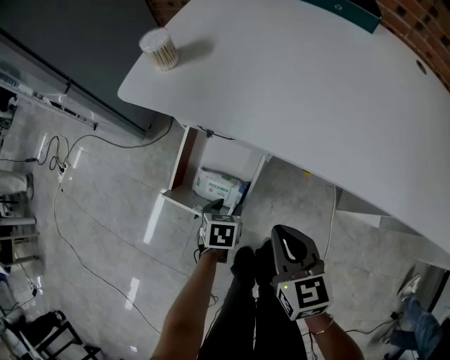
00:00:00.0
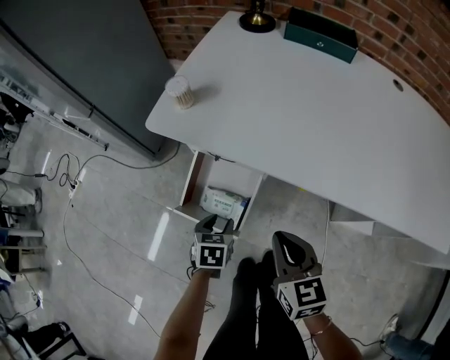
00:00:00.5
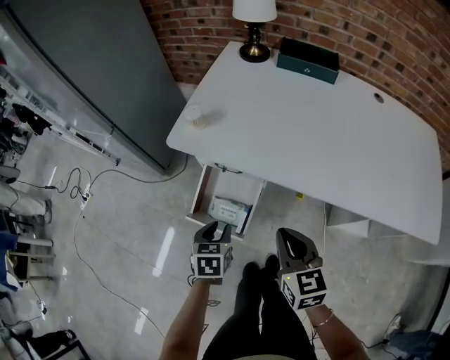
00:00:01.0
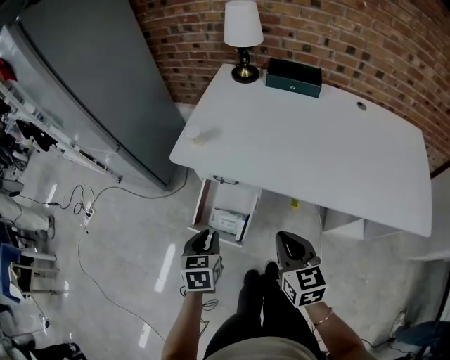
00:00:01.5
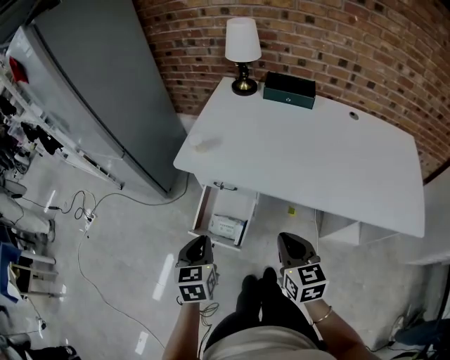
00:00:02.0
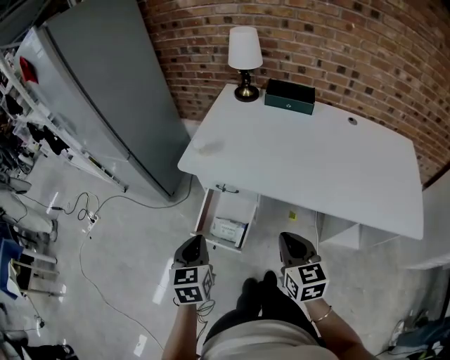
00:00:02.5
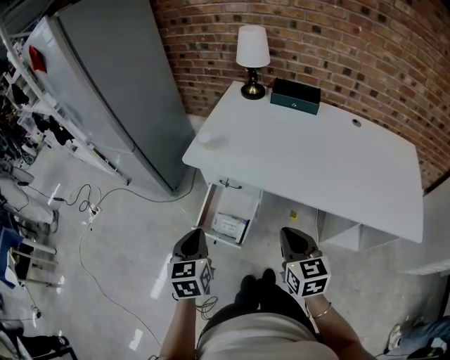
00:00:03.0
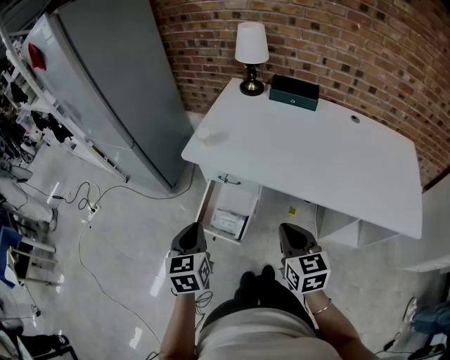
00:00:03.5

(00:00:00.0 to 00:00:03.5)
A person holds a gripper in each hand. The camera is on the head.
00:00:00.0 - 00:00:02.0: The left gripper goes roughly 50 cm upward, changes its angle by about 30 degrees, and closes up, while the right gripper goes approximately 30 cm upward.
00:00:02.0 - 00:00:03.5: The left gripper travels upward by some 5 cm.

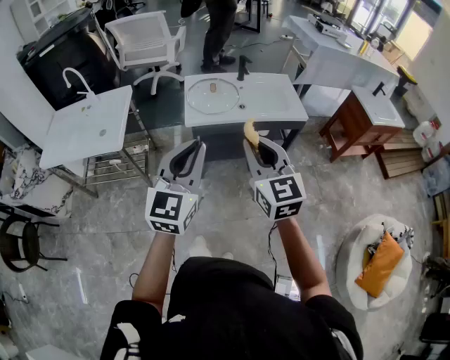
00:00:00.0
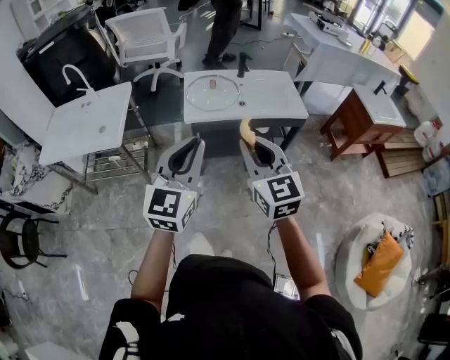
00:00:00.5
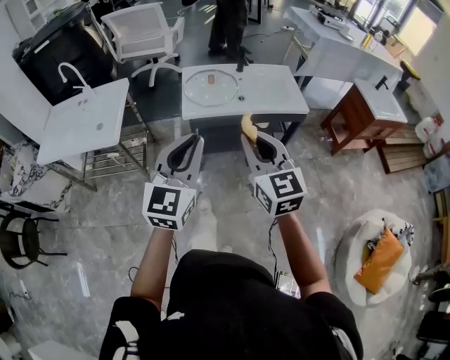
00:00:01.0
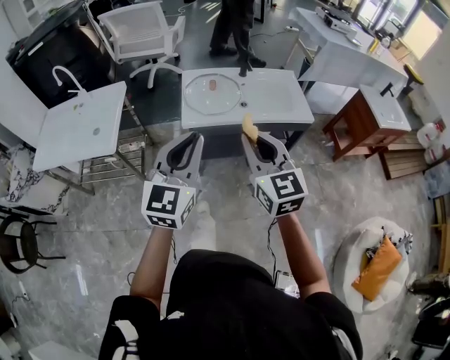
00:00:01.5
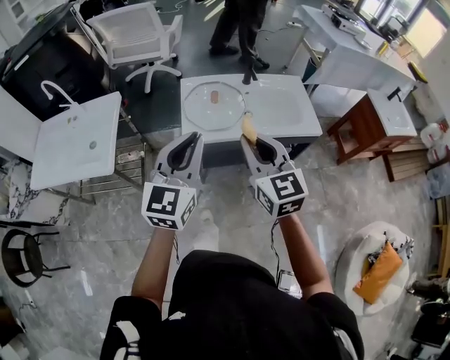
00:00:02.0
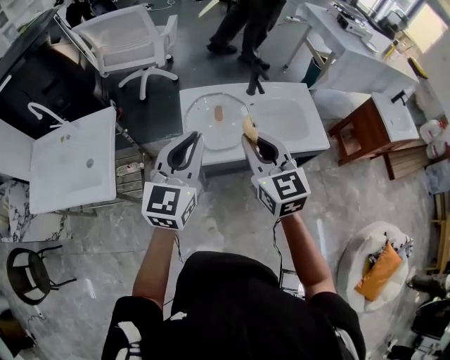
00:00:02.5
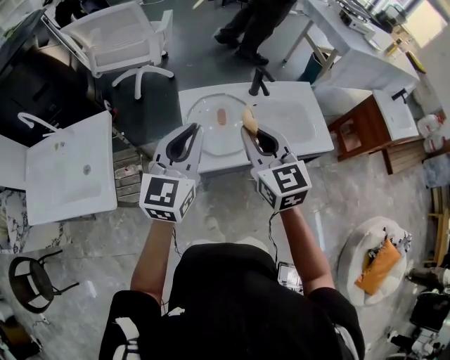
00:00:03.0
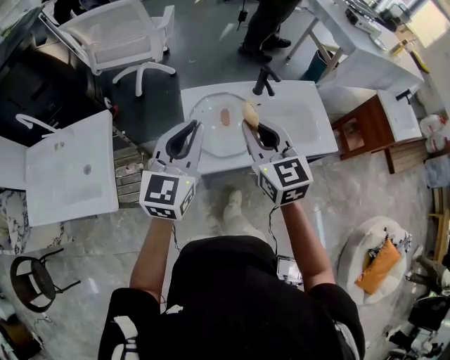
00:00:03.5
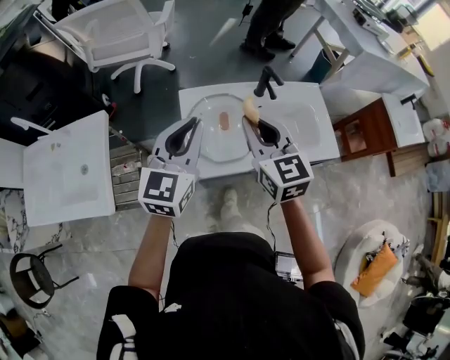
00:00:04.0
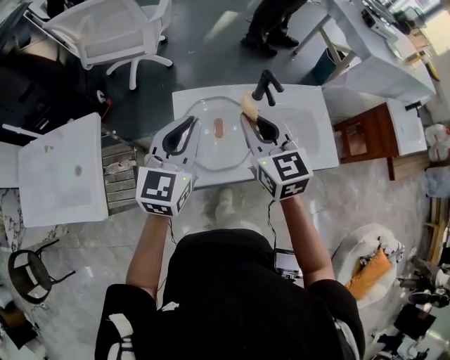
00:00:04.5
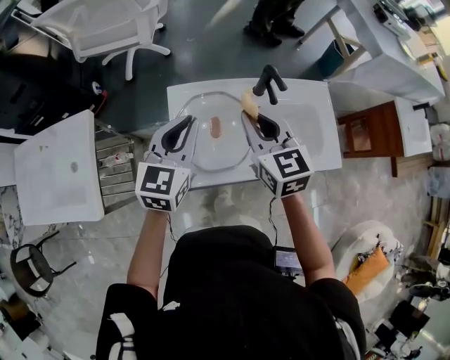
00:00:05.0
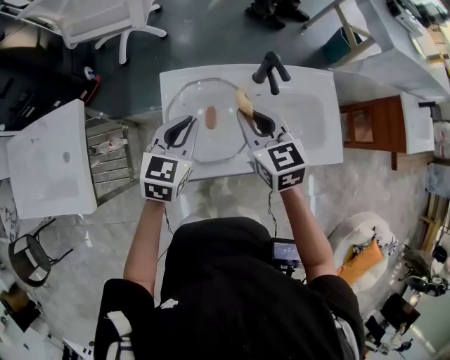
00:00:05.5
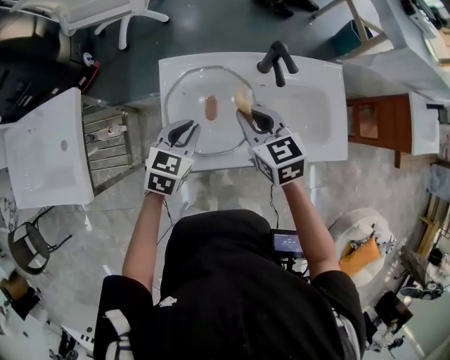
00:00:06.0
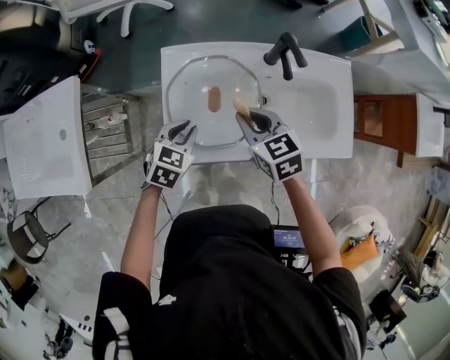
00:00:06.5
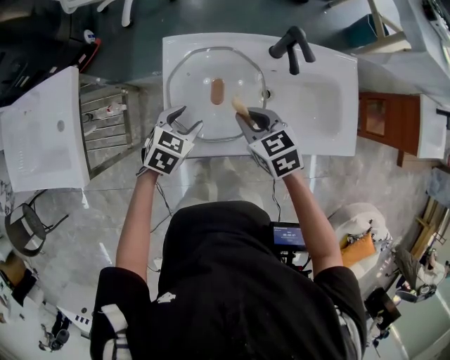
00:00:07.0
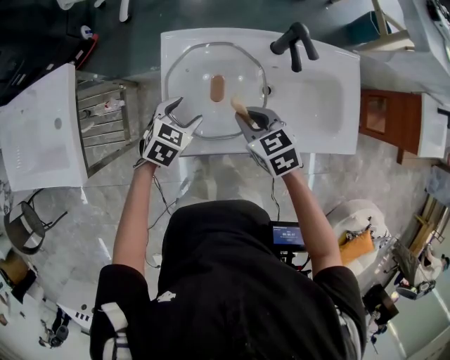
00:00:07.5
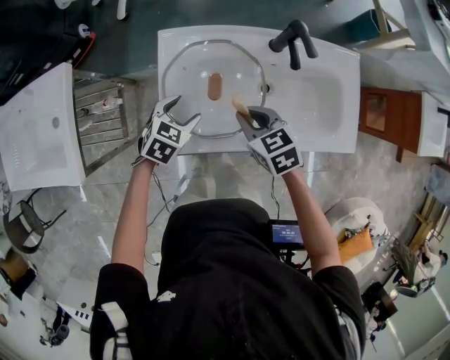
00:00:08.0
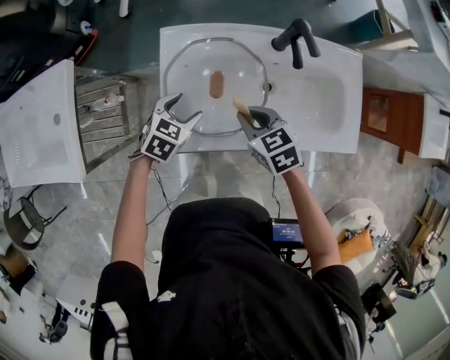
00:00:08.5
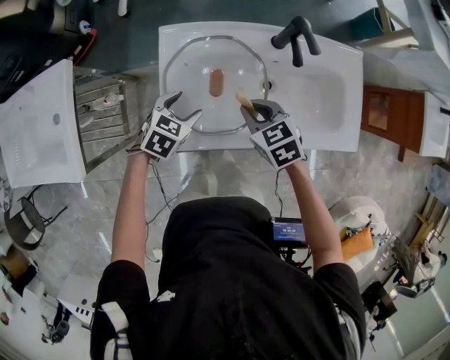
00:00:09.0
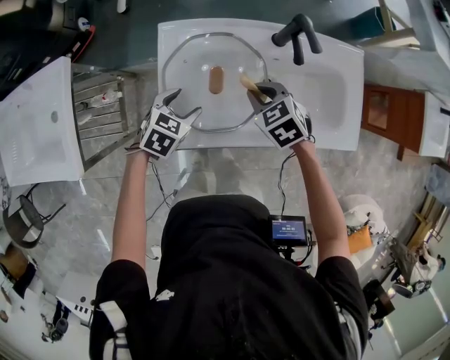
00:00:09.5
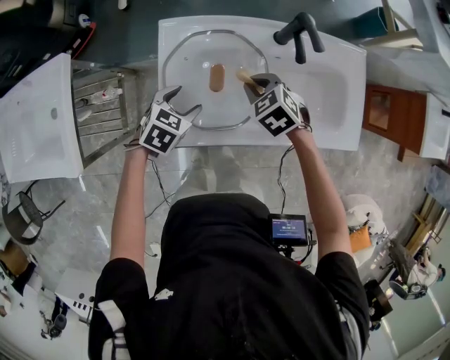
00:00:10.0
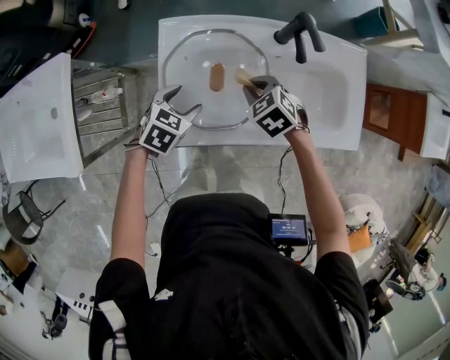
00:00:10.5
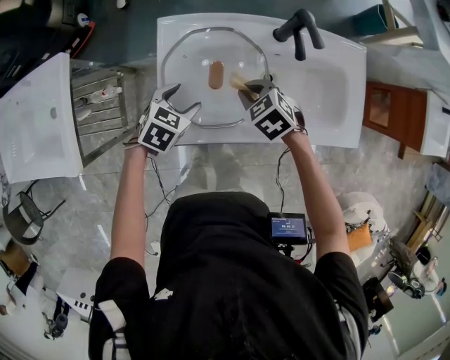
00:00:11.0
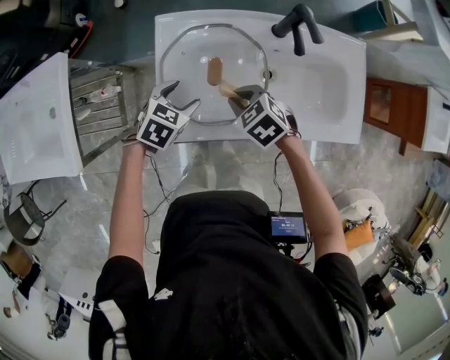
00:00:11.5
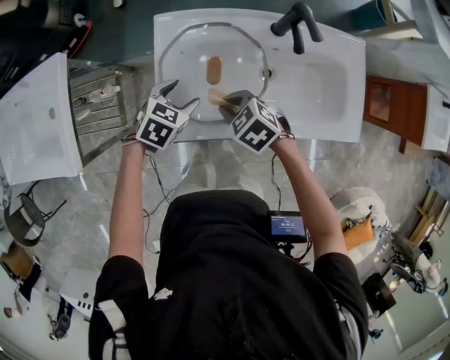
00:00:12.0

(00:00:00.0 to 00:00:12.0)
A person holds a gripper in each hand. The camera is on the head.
00:00:00.0 - 00:00:02.0: Both grippers travel together forward, roughly 20 cm.
00:00:02.0 - 00:00:04.0: Both grippers move forward, some 25 cm.
00:00:04.0 - 00:00:06.0: The left gripper moves downward, roughly 25 cm, and tilts its fingers roughly 30 degrees downward. The right gripper is displaced downward and forward by about 20 cm, and turns by some 30 degrees.
00:00:06.0 - 00:00:08.0: The grippers both shift downward by about 10 cm. The left gripper opens its fingers.
00:00:08.0 - 00:00:10.0: The right gripper moves forward, some 5 cm, and changes its angle by approximately 20 degrees.
00:00:10.0 - 00:00:12.0: The right gripper moves backward and to the left, roughly 10 cm.

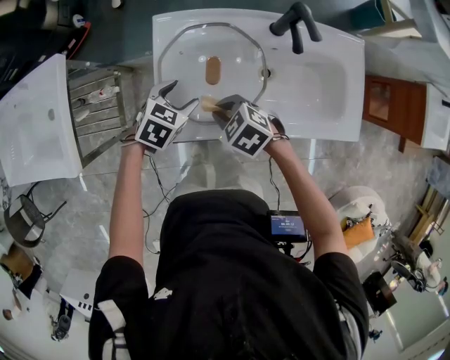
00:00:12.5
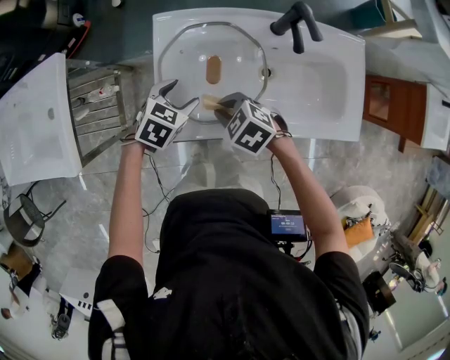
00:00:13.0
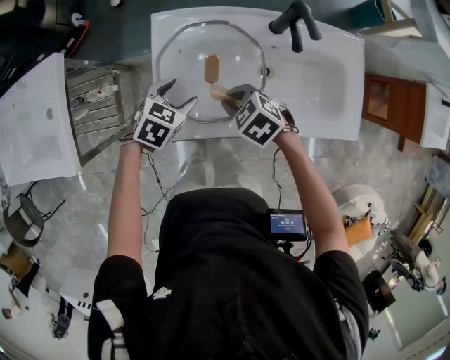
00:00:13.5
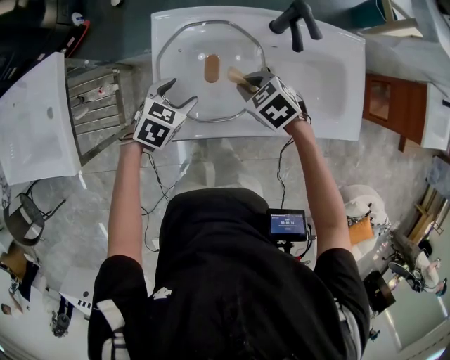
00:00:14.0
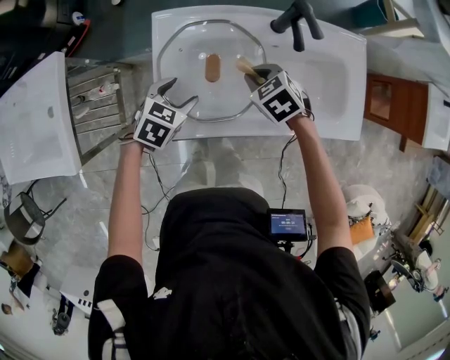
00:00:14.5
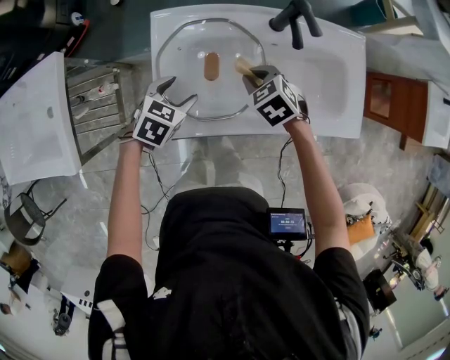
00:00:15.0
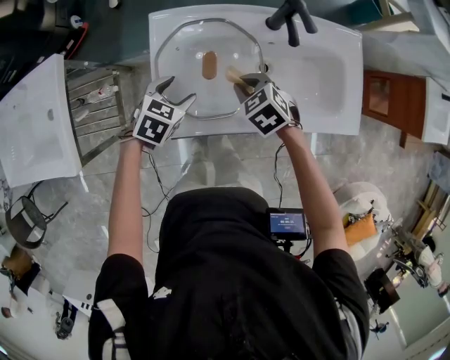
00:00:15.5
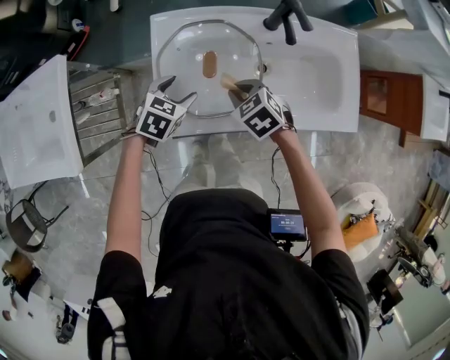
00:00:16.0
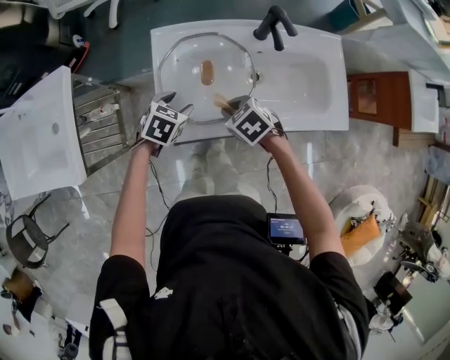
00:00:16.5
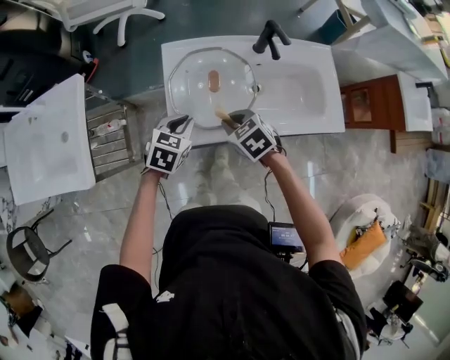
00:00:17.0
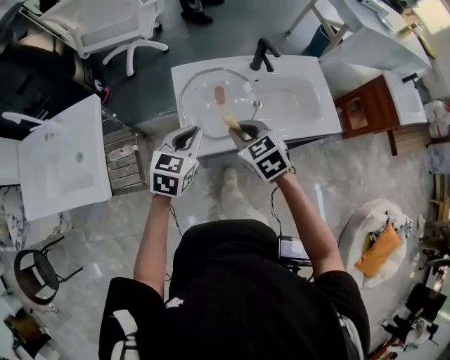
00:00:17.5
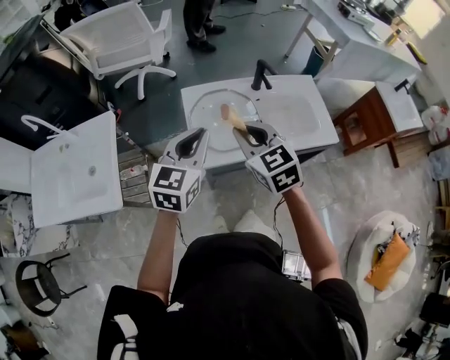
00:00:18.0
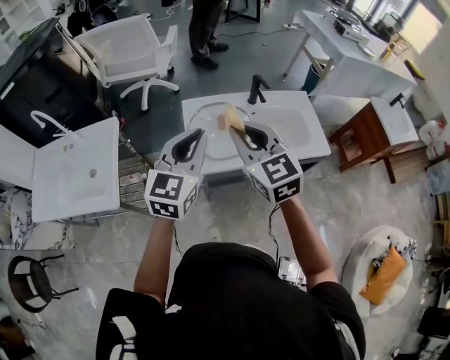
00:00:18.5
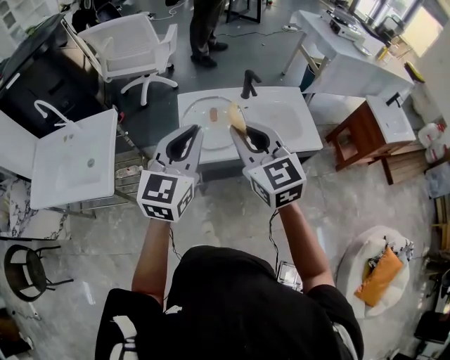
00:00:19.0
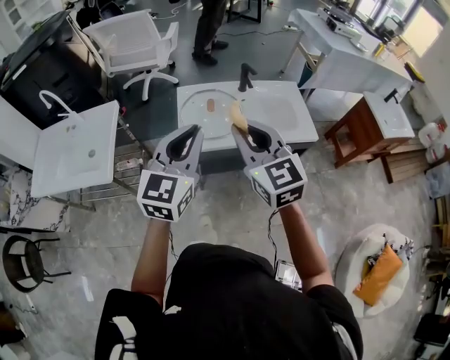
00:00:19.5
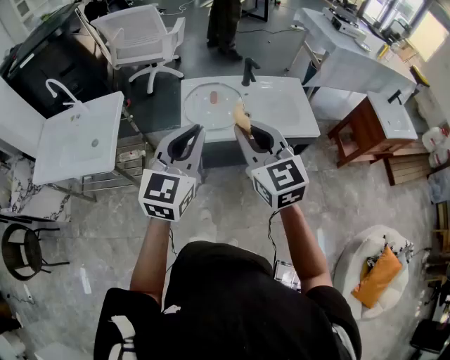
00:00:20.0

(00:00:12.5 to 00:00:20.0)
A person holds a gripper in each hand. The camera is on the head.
00:00:12.5 - 00:00:14.5: The right gripper moves to the right and forward, roughly 15 cm.
00:00:14.5 - 00:00:16.5: The right gripper shifts roughly 10 cm backward and to the left.
00:00:16.5 - 00:00:18.0: The two grippers go roughly 30 cm upward. The left gripper angles its fingers upward, by approximately 50 degrees, and closes up. The right gripper angles its fingers upward, by approximately 40 degrees.
00:00:18.0 - 00:00:20.0: The two grippers go approximately 20 cm backward and upward.

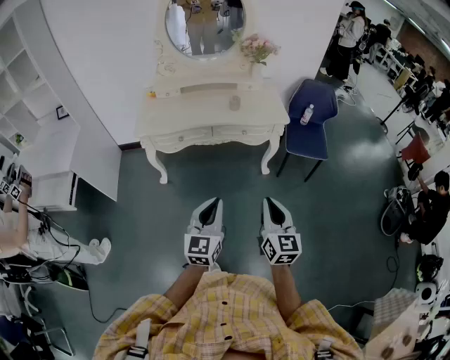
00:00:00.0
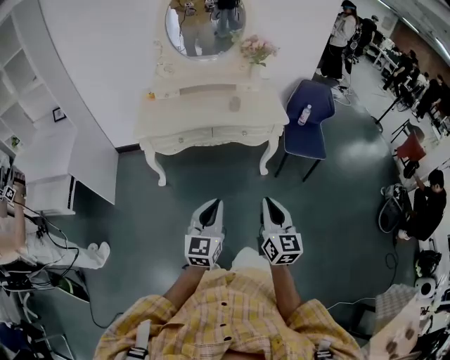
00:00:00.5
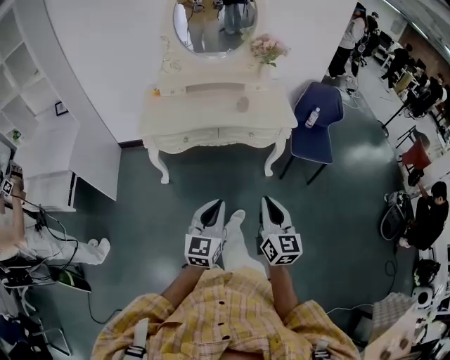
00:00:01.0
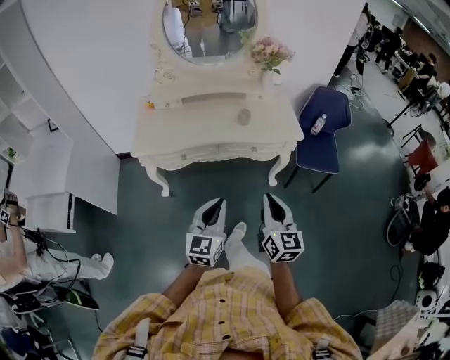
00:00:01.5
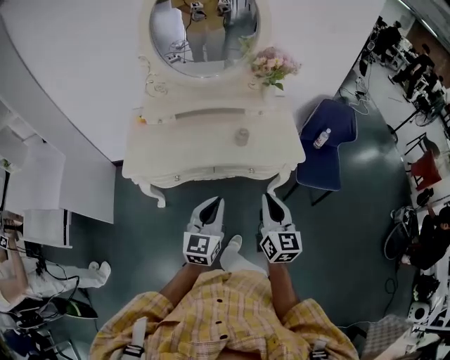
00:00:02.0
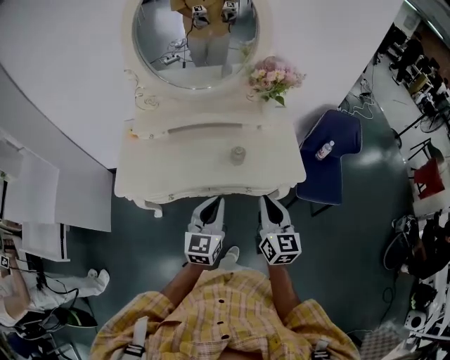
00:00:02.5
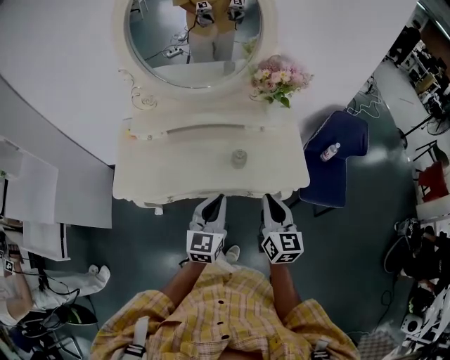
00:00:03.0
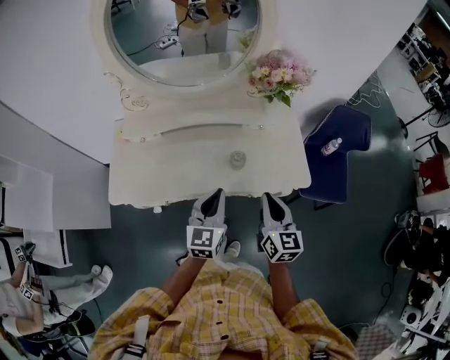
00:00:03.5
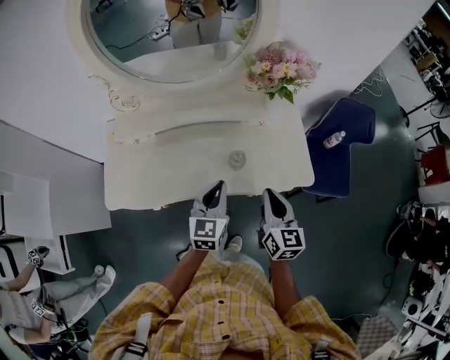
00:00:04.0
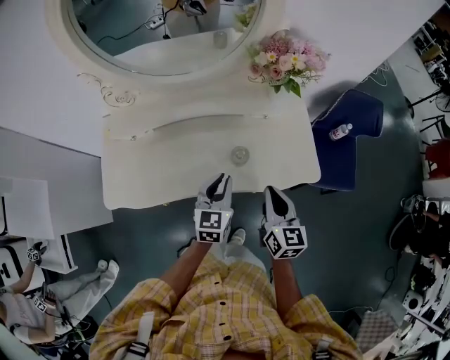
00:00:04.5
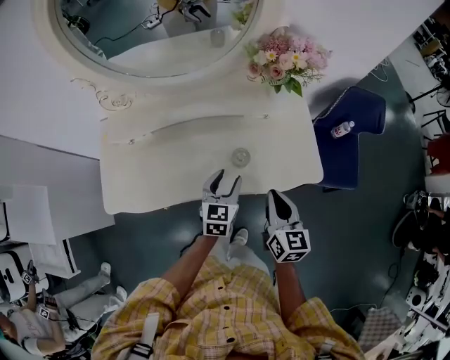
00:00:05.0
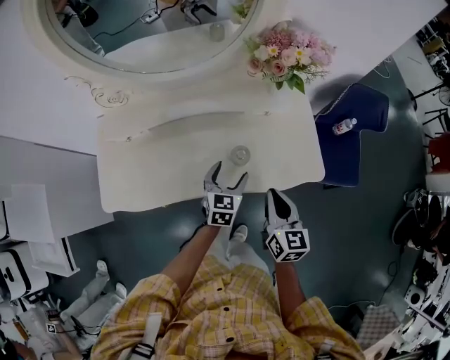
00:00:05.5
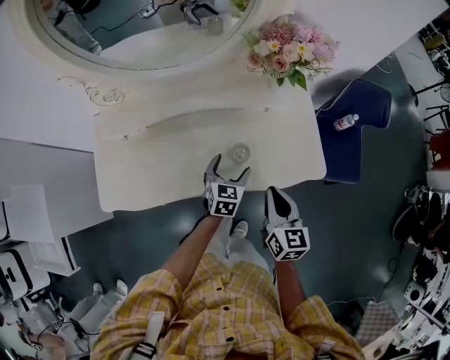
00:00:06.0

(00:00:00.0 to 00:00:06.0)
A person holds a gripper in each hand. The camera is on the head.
00:00:00.0 - 00:00:02.0: Both grippers travel together forward, roughly 30 cm.
00:00:02.0 - 00:00:04.0: Both grippers travel together forward, some 25 cm.
00:00:04.0 - 00:00:06.0: The left gripper travels downward and forward by some 20 cm, changes its angle by roughly 20 degrees, and opens its fingers; the right gripper is displaced downward by some 5 cm.
